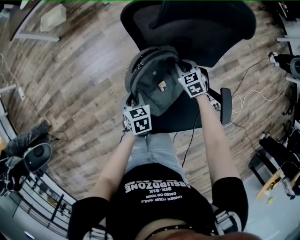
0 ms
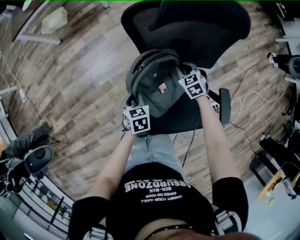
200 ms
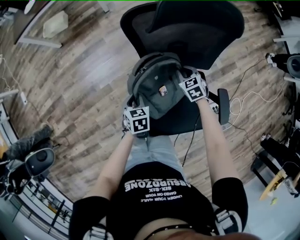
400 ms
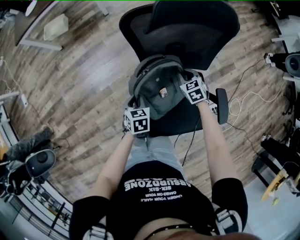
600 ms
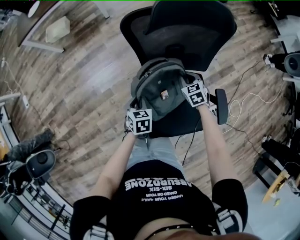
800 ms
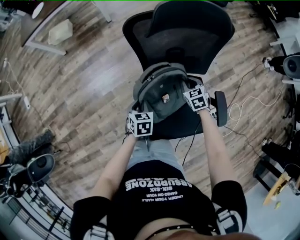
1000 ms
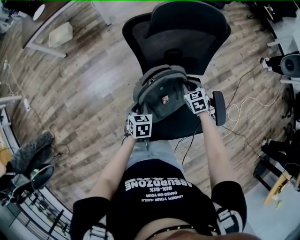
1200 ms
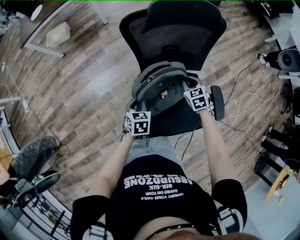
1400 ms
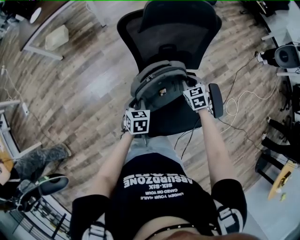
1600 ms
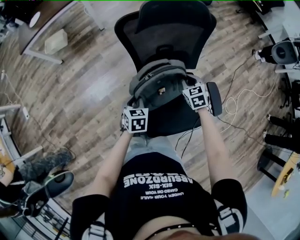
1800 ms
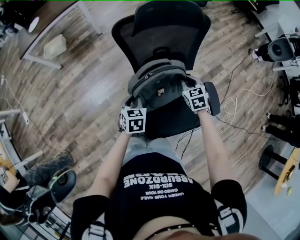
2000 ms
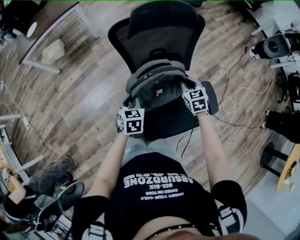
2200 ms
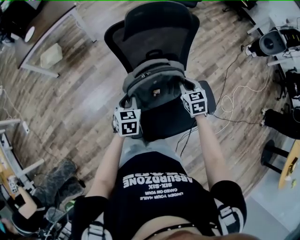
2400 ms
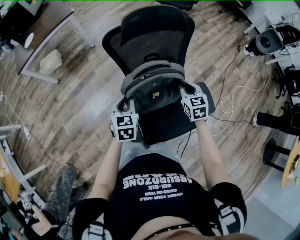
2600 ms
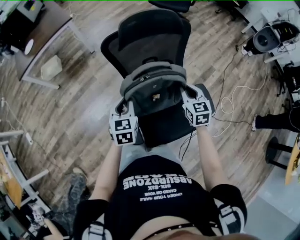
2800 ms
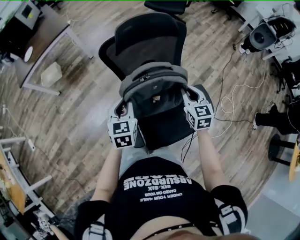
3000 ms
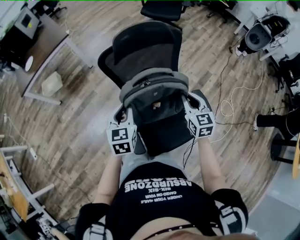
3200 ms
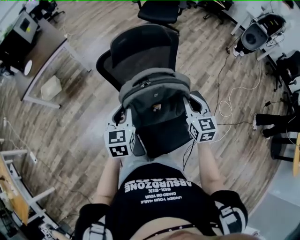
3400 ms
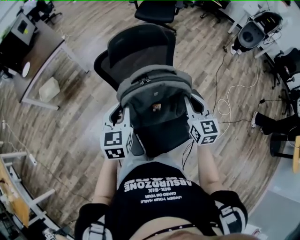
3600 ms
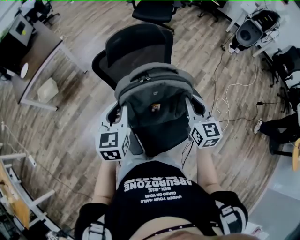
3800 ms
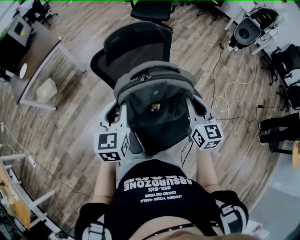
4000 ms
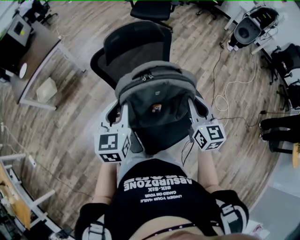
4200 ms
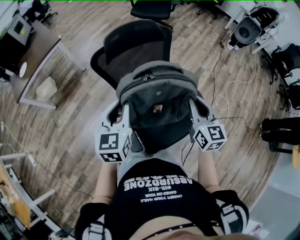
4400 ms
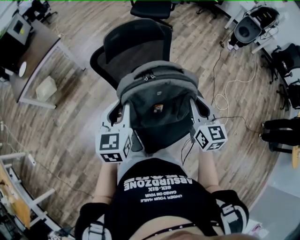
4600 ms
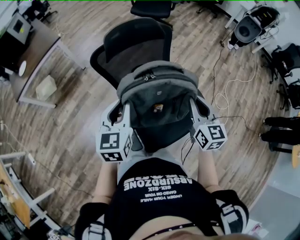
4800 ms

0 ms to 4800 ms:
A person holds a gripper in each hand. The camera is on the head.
0 ms to 1600 ms: The right gripper is displaced backward, upward and to the right by some 15 cm. The left gripper shifts roughly 10 cm backward and upward.
1600 ms to 3200 ms: The left gripper travels upward by approximately 20 cm, and turns by about 30 degrees. The right gripper goes about 20 cm upward and backward, and swivels approximately 30 degrees.
3200 ms to 4800 ms: The left gripper shifts approximately 10 cm upward; the right gripper heads upward and backward, covering about 10 cm.

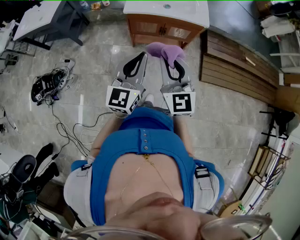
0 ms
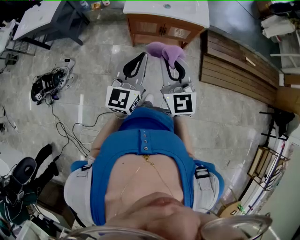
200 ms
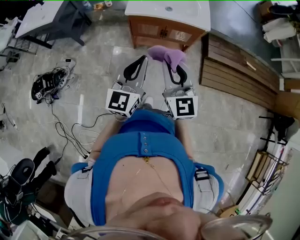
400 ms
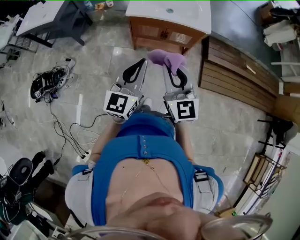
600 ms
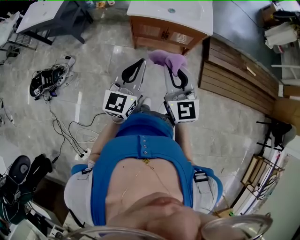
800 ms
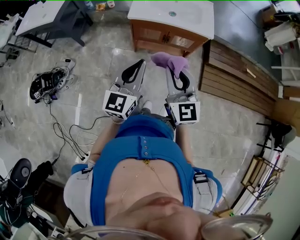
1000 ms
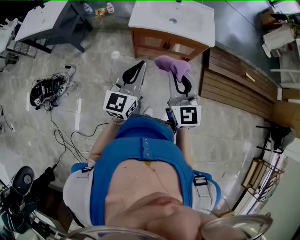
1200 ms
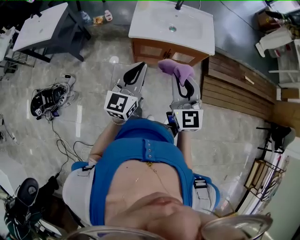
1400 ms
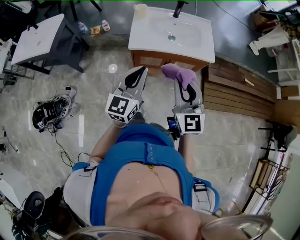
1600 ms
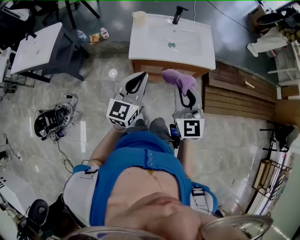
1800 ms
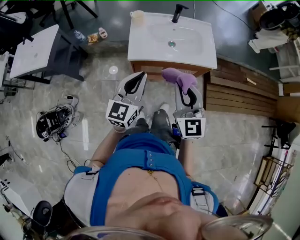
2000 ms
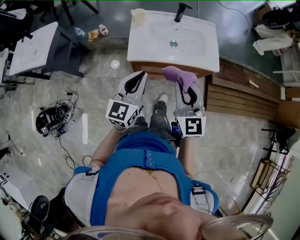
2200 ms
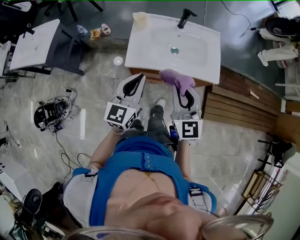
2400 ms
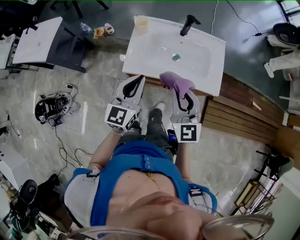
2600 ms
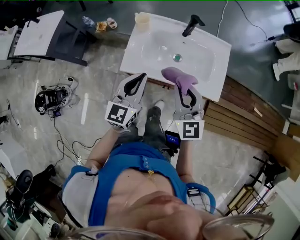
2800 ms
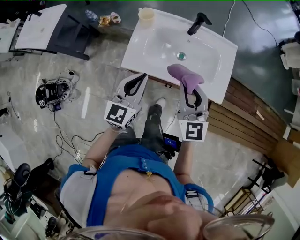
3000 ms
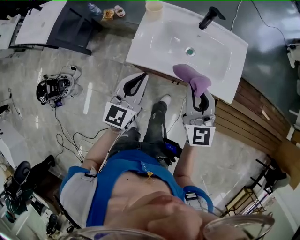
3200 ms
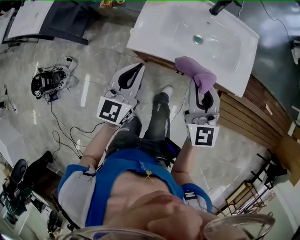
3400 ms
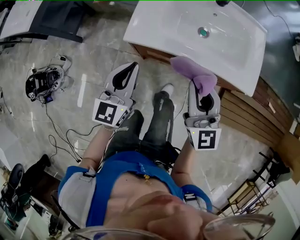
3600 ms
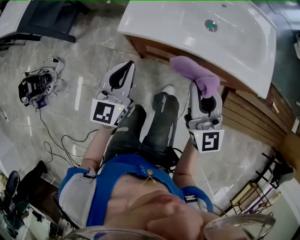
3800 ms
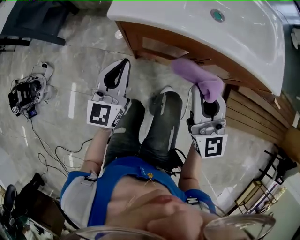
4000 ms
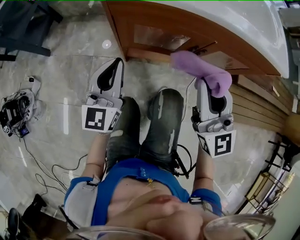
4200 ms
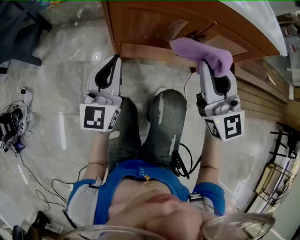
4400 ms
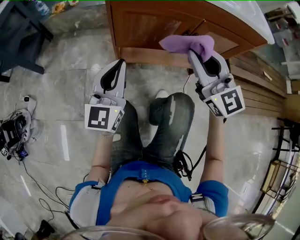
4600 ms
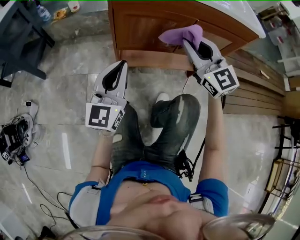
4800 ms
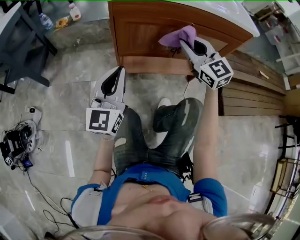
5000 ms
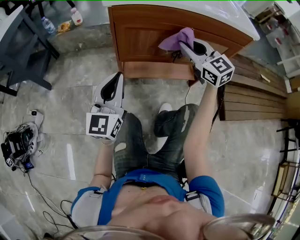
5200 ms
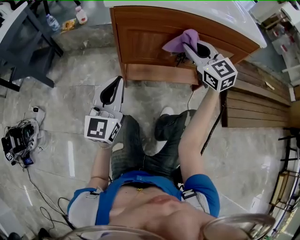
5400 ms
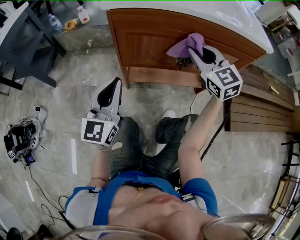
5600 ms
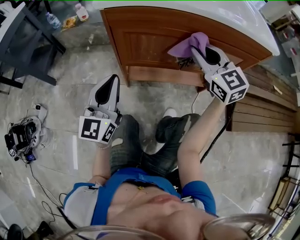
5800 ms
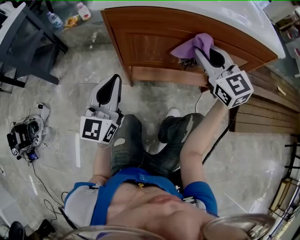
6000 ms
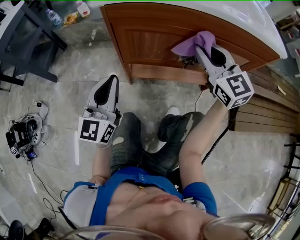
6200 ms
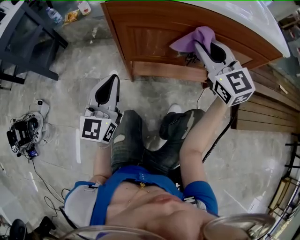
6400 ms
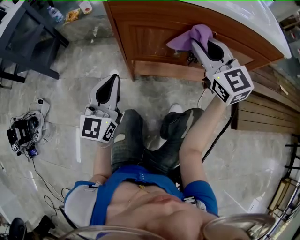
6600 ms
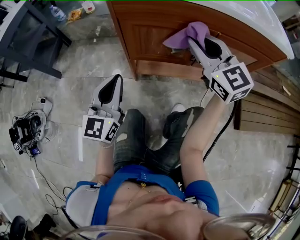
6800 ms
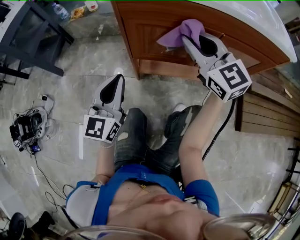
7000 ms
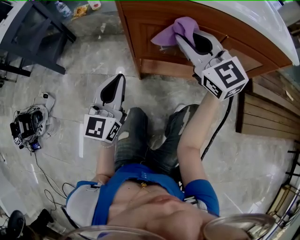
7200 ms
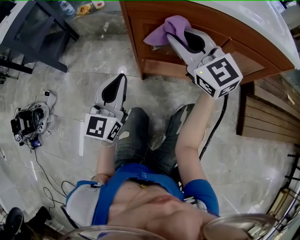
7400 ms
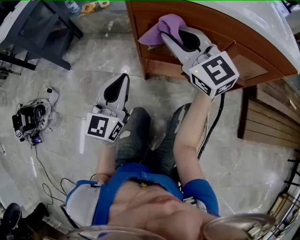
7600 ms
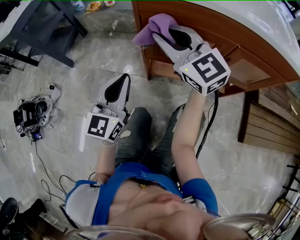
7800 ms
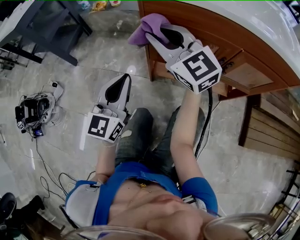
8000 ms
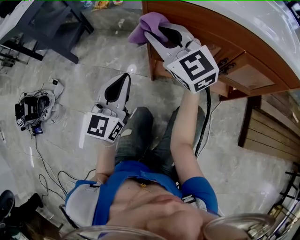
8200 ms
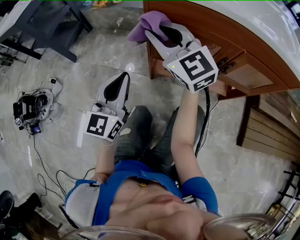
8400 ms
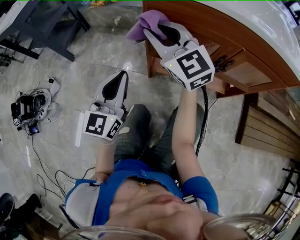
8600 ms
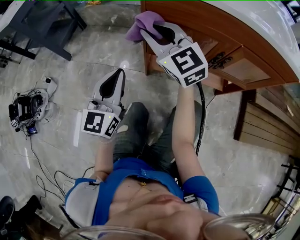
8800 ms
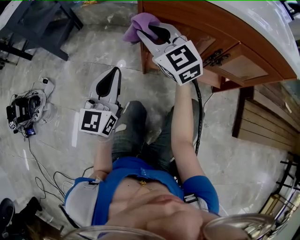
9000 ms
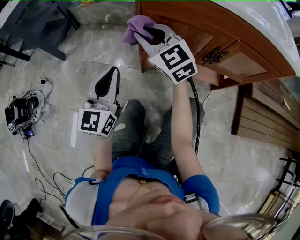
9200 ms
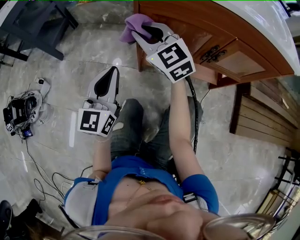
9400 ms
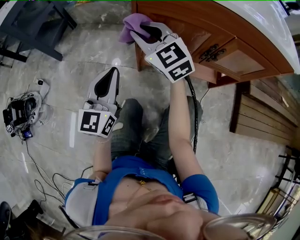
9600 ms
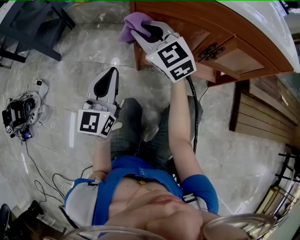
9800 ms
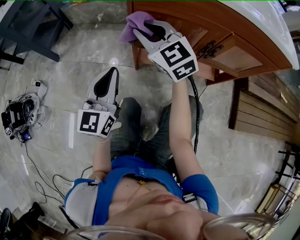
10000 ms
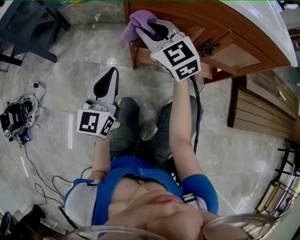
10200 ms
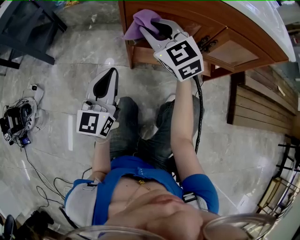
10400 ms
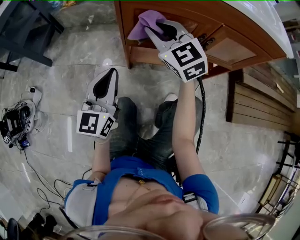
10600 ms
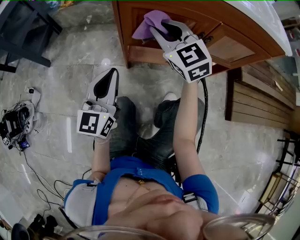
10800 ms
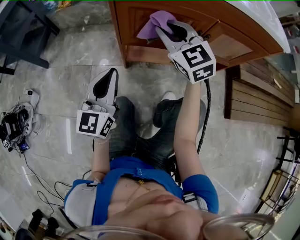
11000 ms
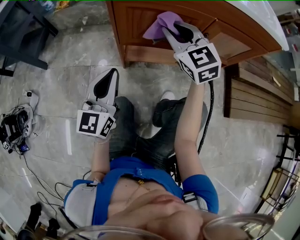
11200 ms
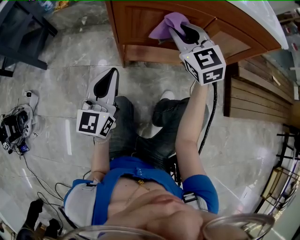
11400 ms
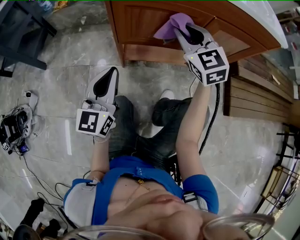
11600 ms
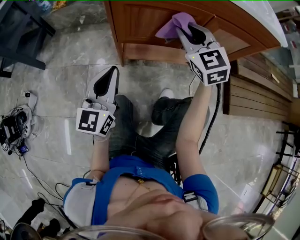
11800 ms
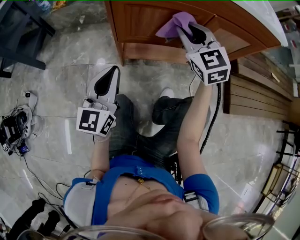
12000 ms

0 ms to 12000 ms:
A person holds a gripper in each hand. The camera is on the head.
0 ms to 1600 ms: The grippers both shift forward by approximately 20 cm.
1600 ms to 3000 ms: Both grippers travel together forward, some 25 cm.
3000 ms to 4400 ms: The two grippers go roughly 40 cm downward.
4400 ms to 6000 ms: The right gripper moves forward, approximately 10 cm.
6000 ms to 7600 ms: The right gripper is displaced to the left by approximately 15 cm.
7600 ms to 9000 ms: The right gripper heads to the left and downward, covering approximately 10 cm.
9000 ms to 10400 ms: The right gripper goes about 5 cm to the right.
10400 ms to 12000 ms: The right gripper moves to the right, roughly 15 cm.

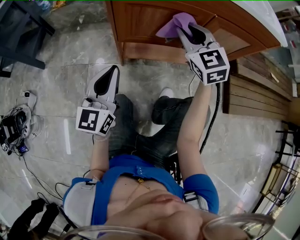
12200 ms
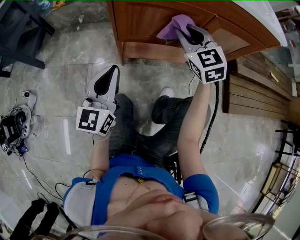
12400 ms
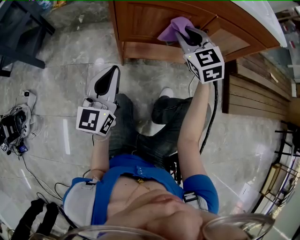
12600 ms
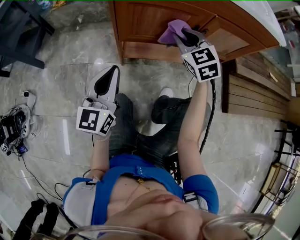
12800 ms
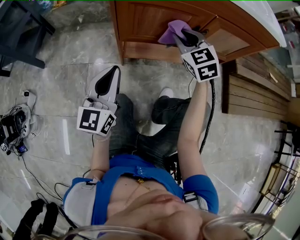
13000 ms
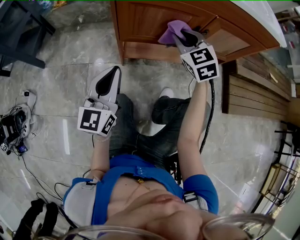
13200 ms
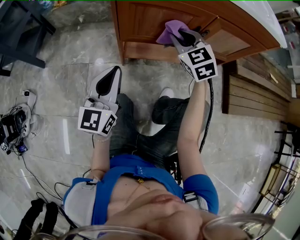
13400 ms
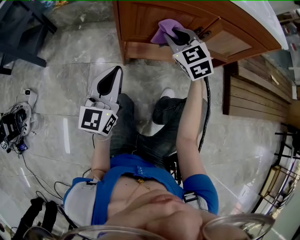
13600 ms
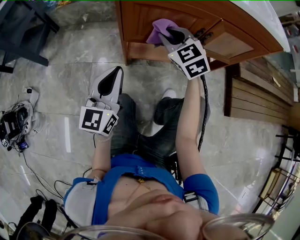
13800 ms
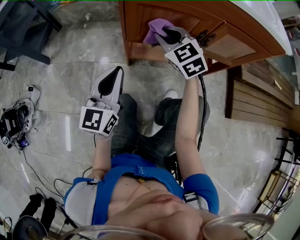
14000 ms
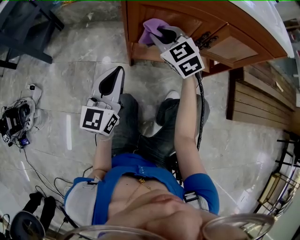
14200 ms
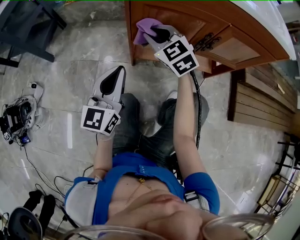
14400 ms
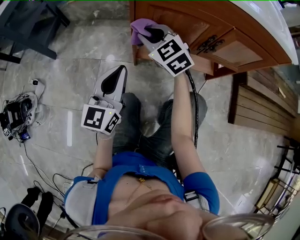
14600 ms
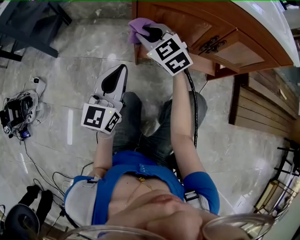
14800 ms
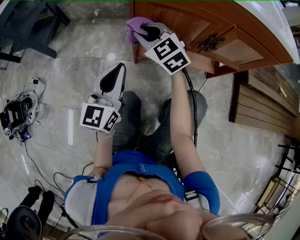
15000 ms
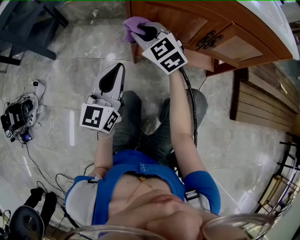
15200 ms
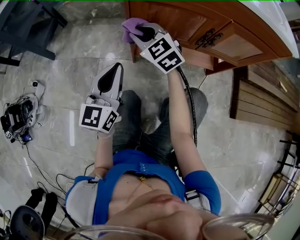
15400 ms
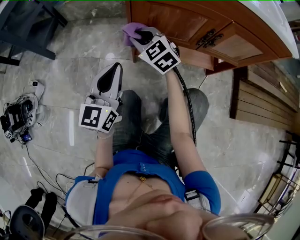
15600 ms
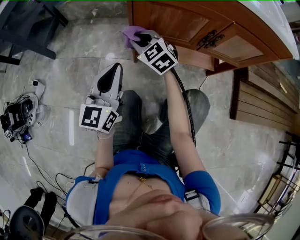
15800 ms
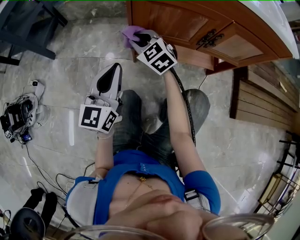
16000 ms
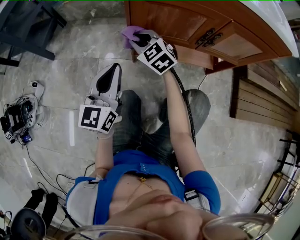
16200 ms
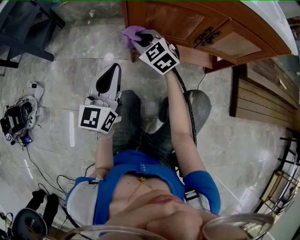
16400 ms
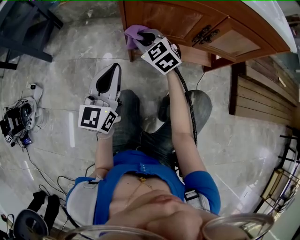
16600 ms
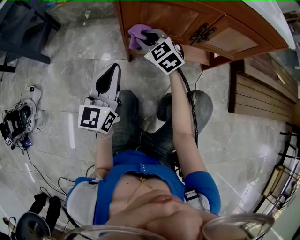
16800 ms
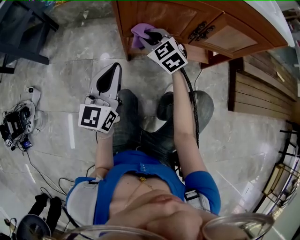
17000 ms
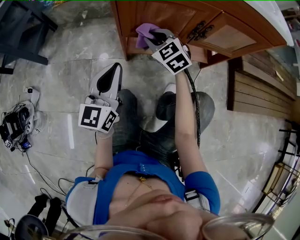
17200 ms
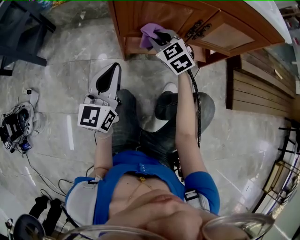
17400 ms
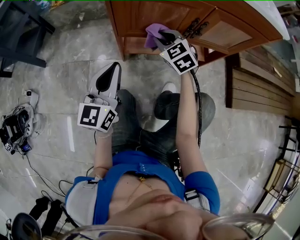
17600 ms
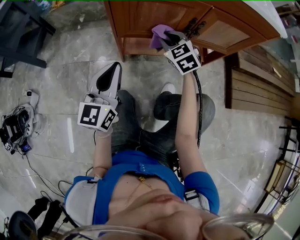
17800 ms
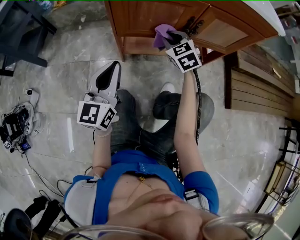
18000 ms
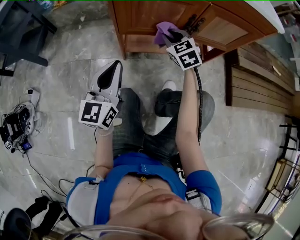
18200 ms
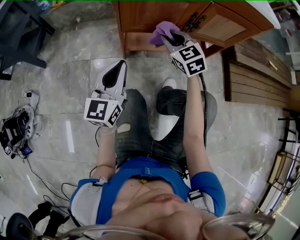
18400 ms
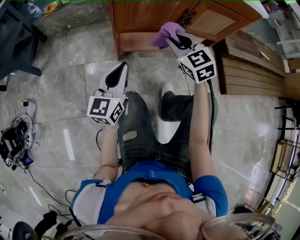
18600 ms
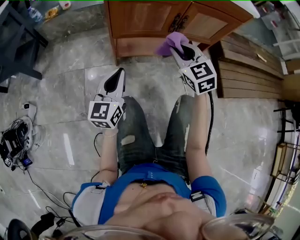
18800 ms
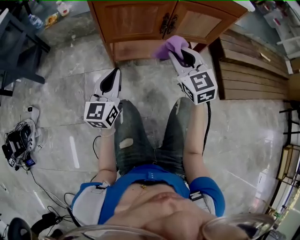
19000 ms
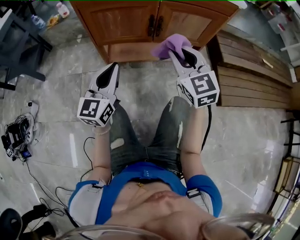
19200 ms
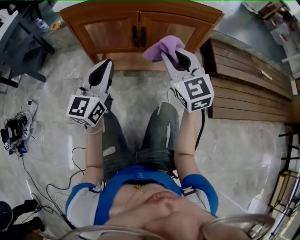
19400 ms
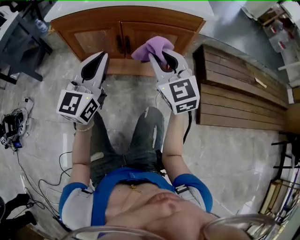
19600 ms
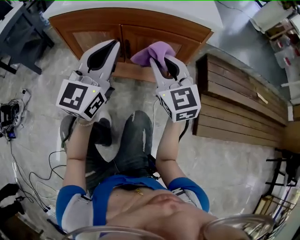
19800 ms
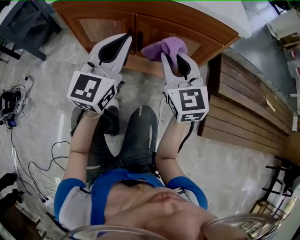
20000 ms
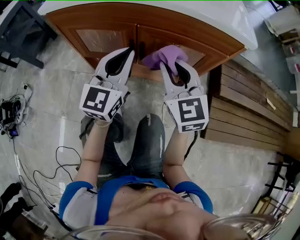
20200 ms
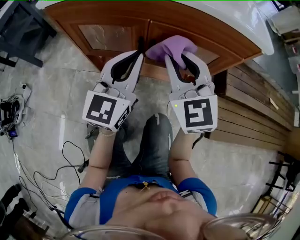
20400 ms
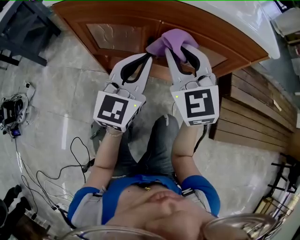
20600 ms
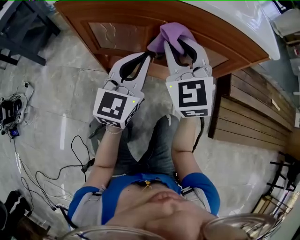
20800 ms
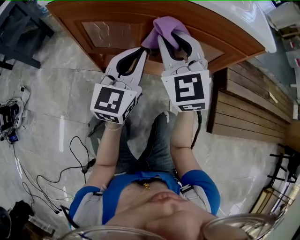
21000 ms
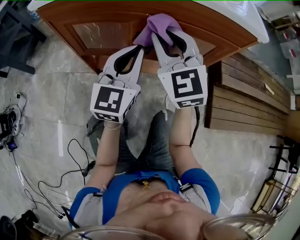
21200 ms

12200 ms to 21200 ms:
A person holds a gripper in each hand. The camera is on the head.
12200 ms to 13800 ms: The right gripper moves to the left and downward, approximately 10 cm.
13800 ms to 15200 ms: The right gripper goes roughly 15 cm to the left.
15200 ms to 16600 ms: The right gripper heads downward, covering some 5 cm.
16600 ms to 18200 ms: The right gripper travels to the right by approximately 15 cm.
18200 ms to 19800 ms: Both grippers move to the right and upward, some 35 cm. The right gripper turns by about 30 degrees.
19800 ms to 21200 ms: The right gripper goes approximately 15 cm to the left and forward; the left gripper shifts approximately 15 cm downward and forward.
